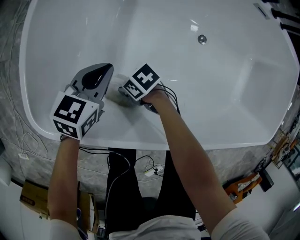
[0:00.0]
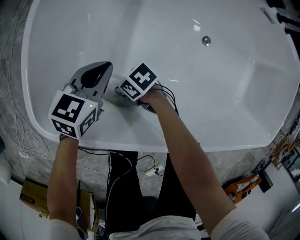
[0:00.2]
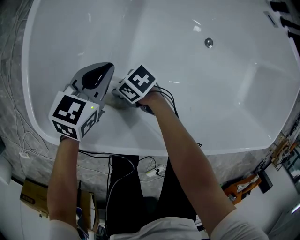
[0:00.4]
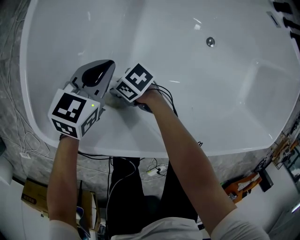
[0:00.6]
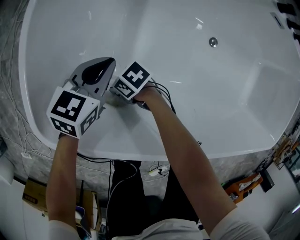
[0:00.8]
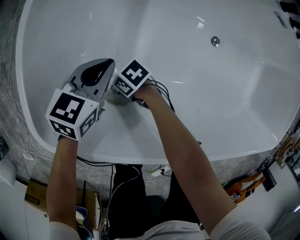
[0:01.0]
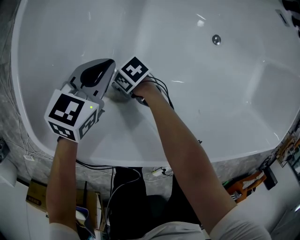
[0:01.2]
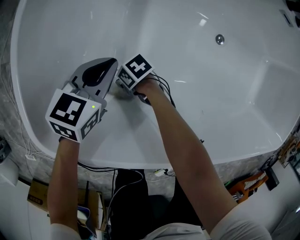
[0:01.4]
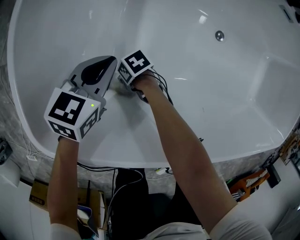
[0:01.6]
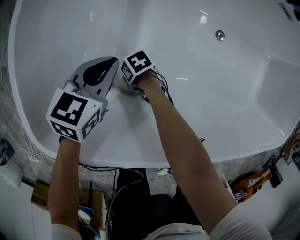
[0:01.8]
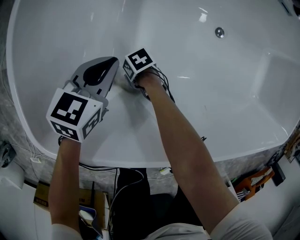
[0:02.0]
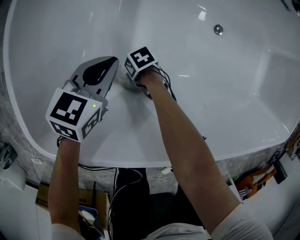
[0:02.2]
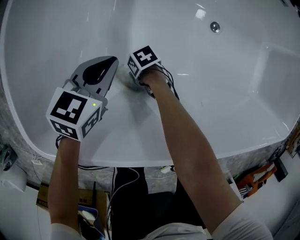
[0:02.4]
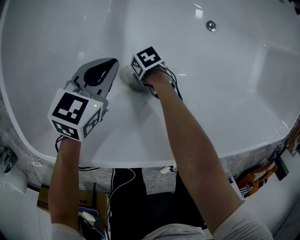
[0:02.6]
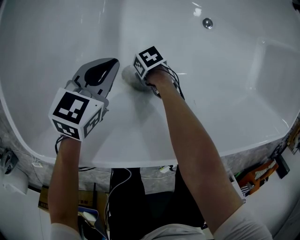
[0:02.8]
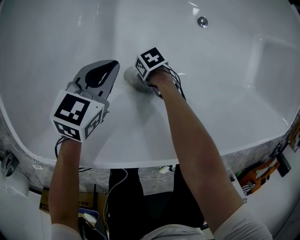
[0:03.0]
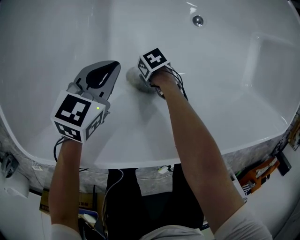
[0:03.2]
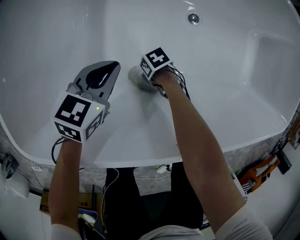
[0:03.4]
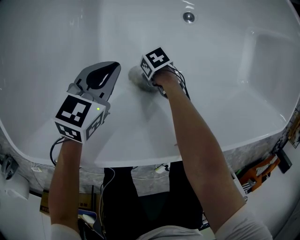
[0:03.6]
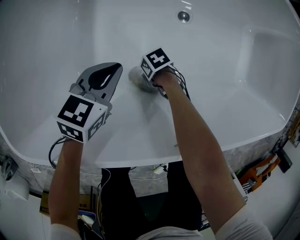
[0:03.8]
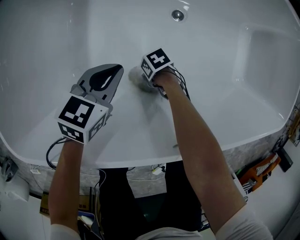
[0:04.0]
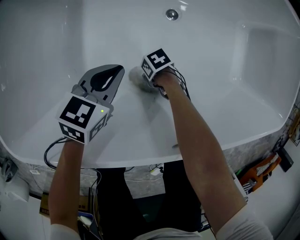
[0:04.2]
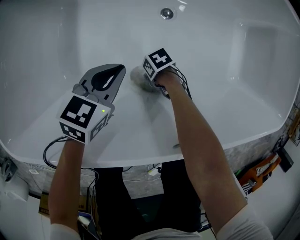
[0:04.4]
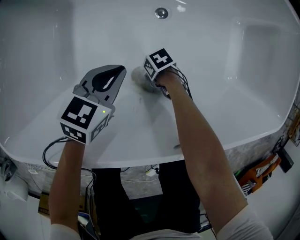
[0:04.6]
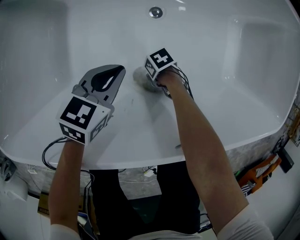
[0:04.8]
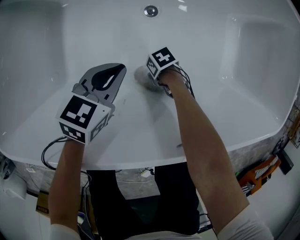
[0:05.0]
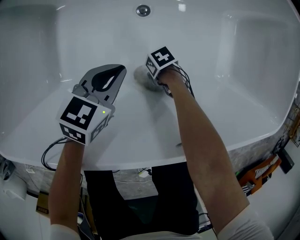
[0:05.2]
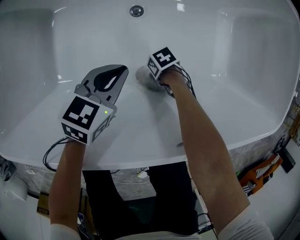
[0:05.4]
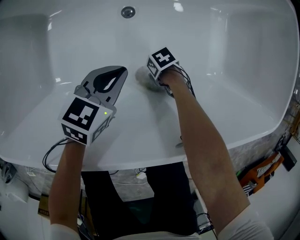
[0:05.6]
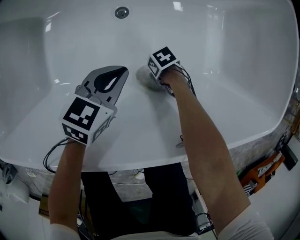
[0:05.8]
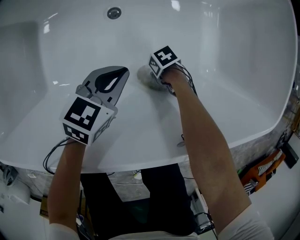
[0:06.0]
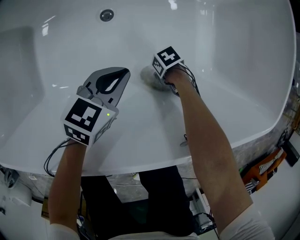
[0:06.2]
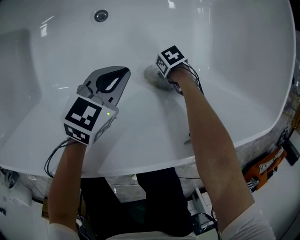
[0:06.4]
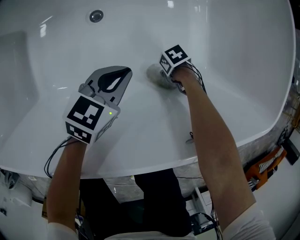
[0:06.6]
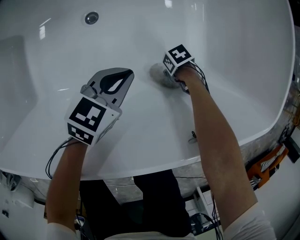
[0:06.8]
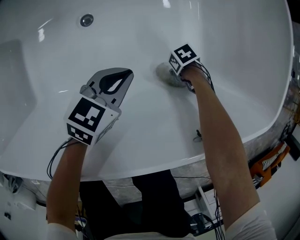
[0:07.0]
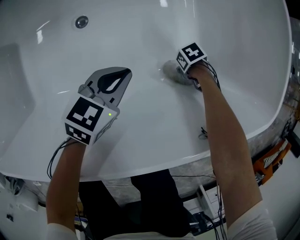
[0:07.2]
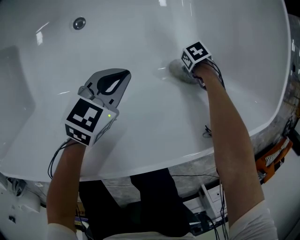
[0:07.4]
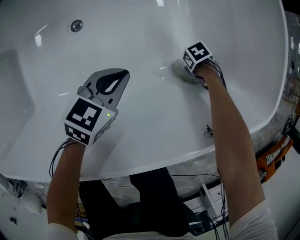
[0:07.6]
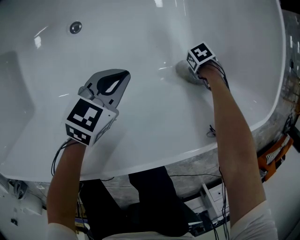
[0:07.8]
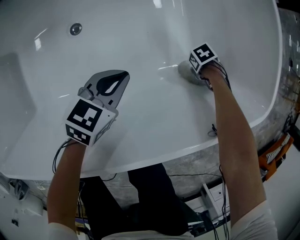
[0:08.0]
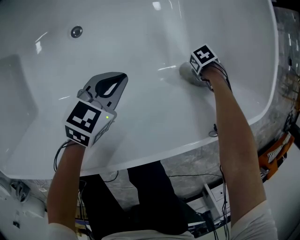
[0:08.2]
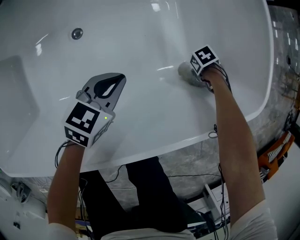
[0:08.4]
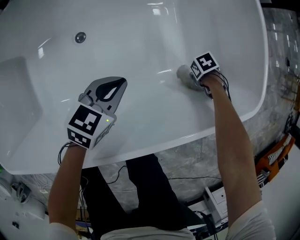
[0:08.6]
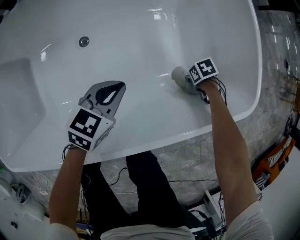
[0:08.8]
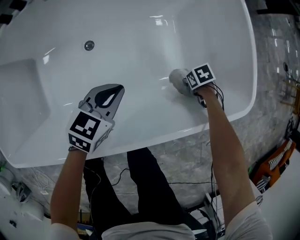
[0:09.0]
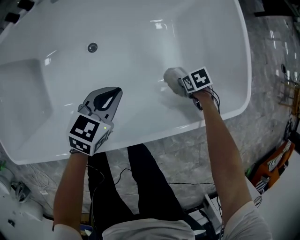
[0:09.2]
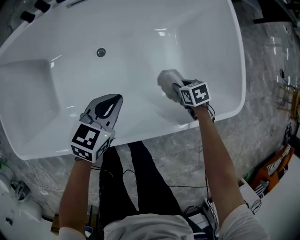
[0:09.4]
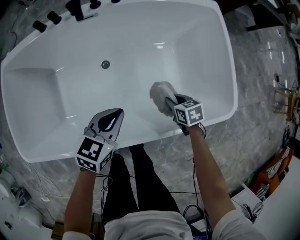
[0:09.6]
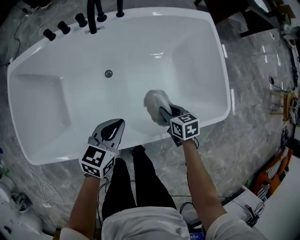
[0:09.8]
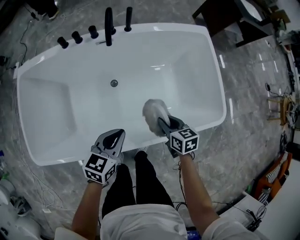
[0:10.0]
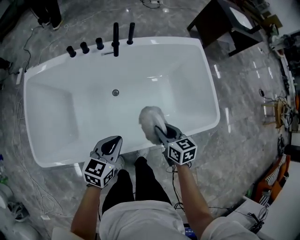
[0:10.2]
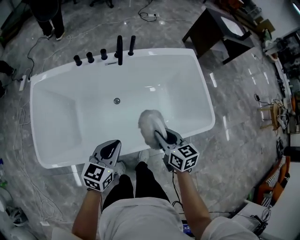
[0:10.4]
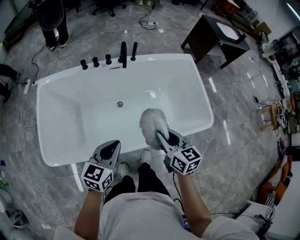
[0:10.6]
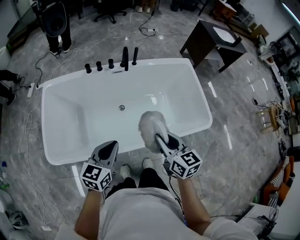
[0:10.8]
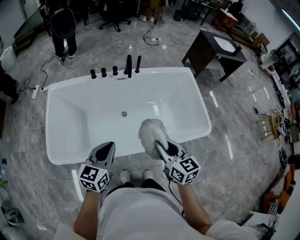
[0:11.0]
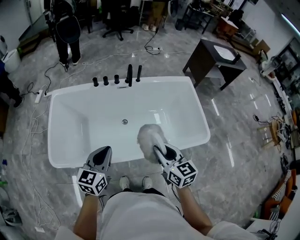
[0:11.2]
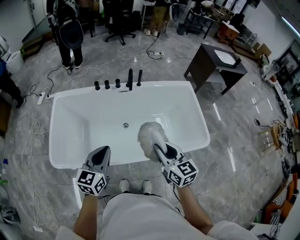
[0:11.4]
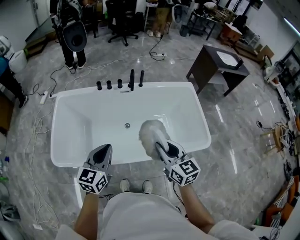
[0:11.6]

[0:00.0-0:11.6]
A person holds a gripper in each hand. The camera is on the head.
0:00.0 to 0:01.4: The left gripper goes roughly 5 cm downward.
0:01.4 to 0:02.8: The left gripper changes place by approximately 10 cm.
0:02.8 to 0:04.4: The left gripper moves about 20 cm.
0:04.4 to 0:05.8: The left gripper changes place by some 20 cm.
0:05.8 to 0:07.2: The left gripper shifts by roughly 15 cm.
0:07.2 to 0:08.8: The left gripper heads upward, covering about 10 cm.
0:08.8 to 0:10.2: The left gripper heads upward, covering roughly 30 cm.
0:10.2 to 0:11.6: The left gripper moves upward, some 20 cm, and changes its angle by roughly 30 degrees.

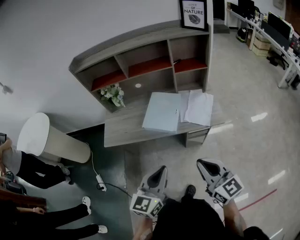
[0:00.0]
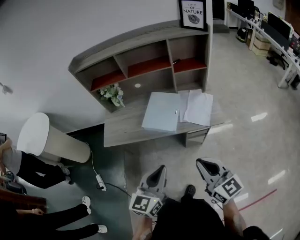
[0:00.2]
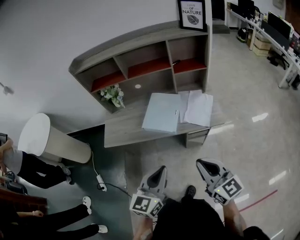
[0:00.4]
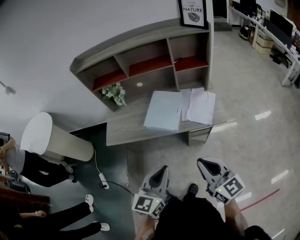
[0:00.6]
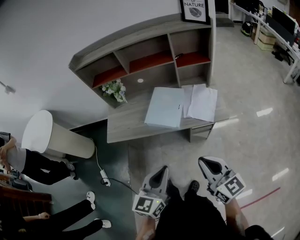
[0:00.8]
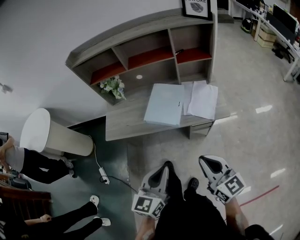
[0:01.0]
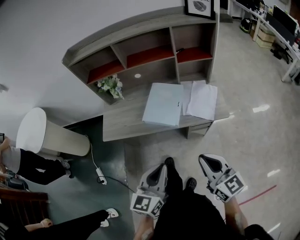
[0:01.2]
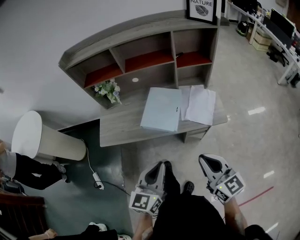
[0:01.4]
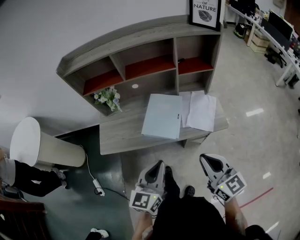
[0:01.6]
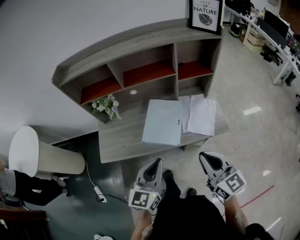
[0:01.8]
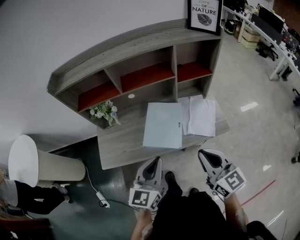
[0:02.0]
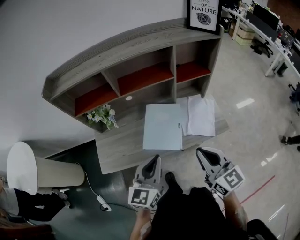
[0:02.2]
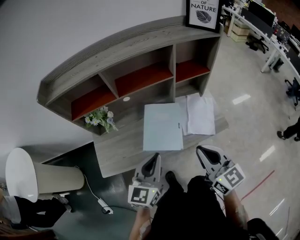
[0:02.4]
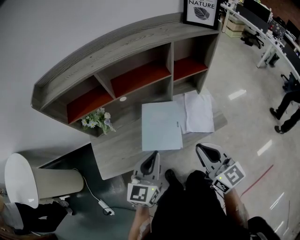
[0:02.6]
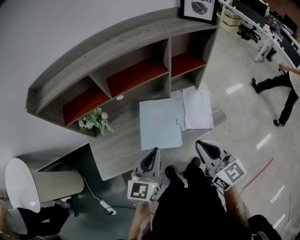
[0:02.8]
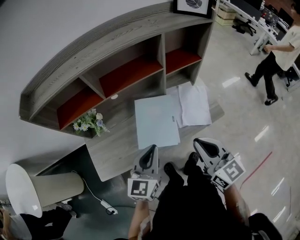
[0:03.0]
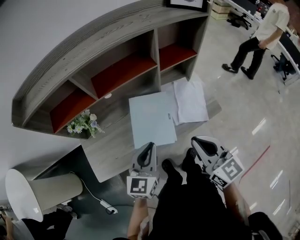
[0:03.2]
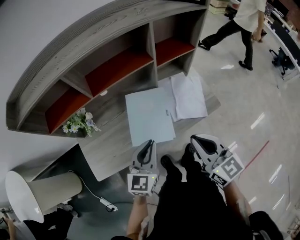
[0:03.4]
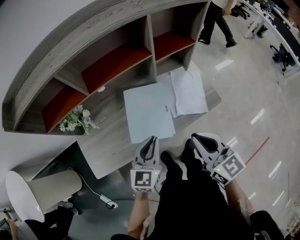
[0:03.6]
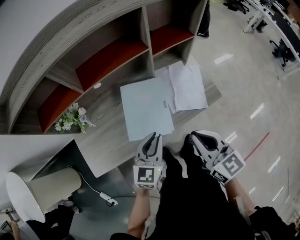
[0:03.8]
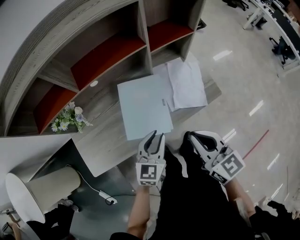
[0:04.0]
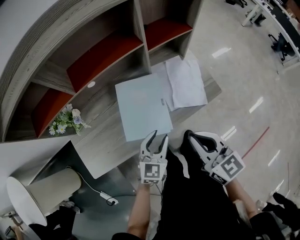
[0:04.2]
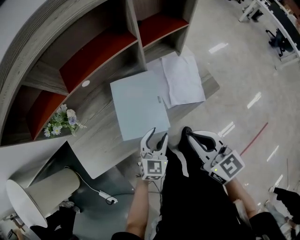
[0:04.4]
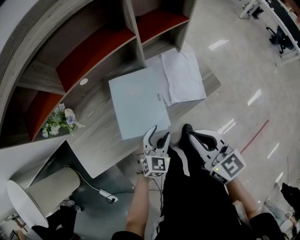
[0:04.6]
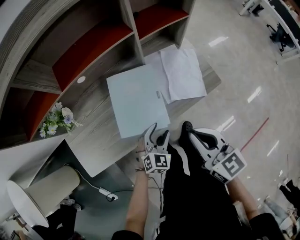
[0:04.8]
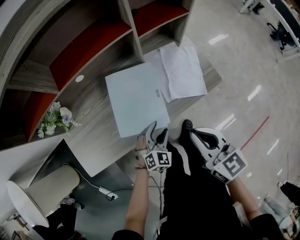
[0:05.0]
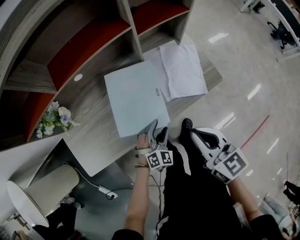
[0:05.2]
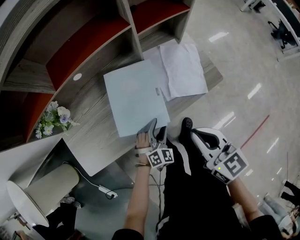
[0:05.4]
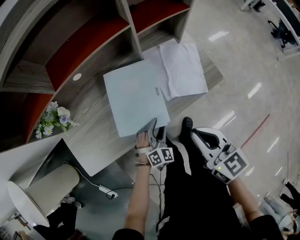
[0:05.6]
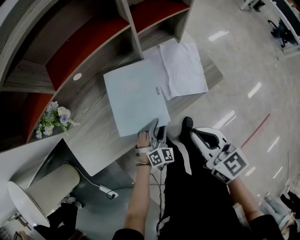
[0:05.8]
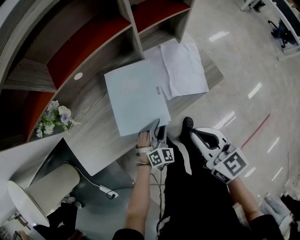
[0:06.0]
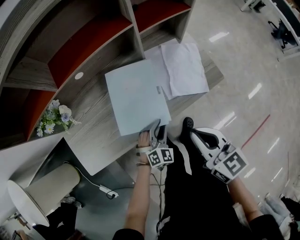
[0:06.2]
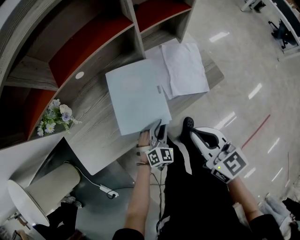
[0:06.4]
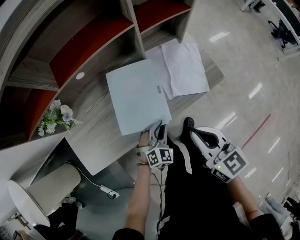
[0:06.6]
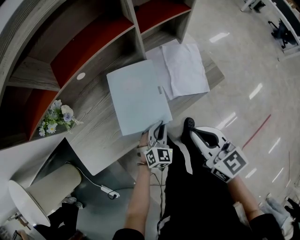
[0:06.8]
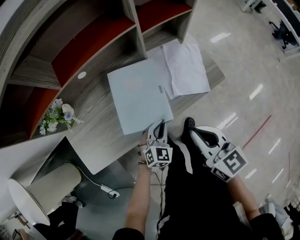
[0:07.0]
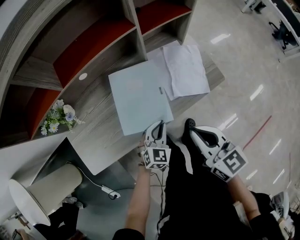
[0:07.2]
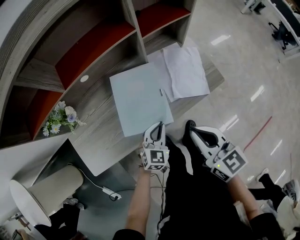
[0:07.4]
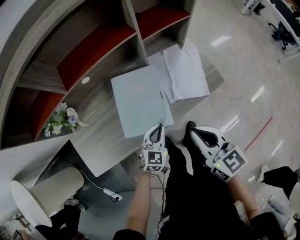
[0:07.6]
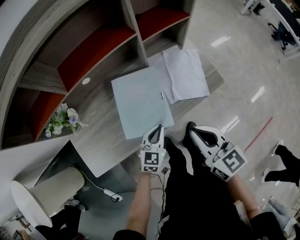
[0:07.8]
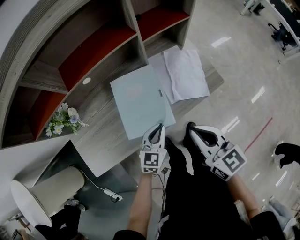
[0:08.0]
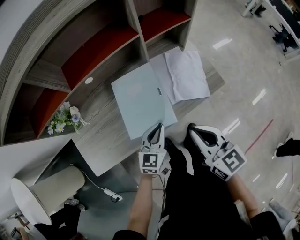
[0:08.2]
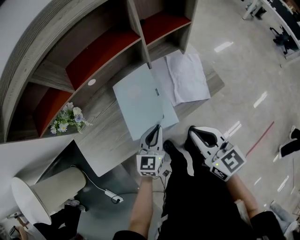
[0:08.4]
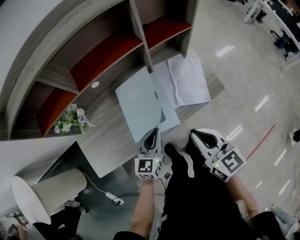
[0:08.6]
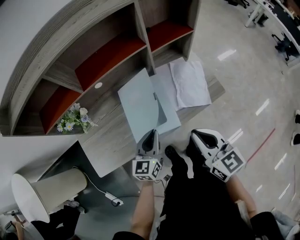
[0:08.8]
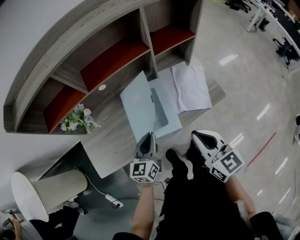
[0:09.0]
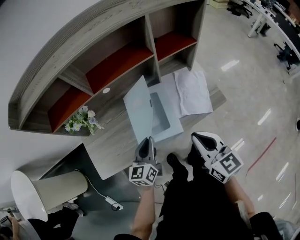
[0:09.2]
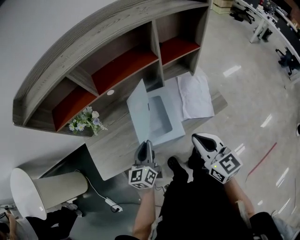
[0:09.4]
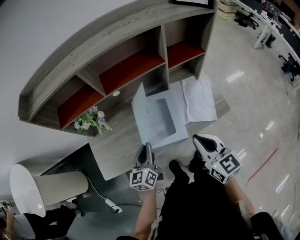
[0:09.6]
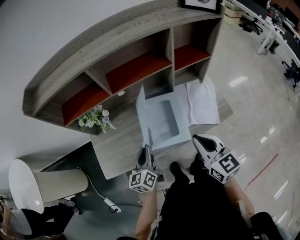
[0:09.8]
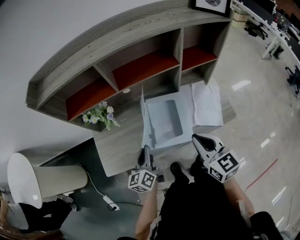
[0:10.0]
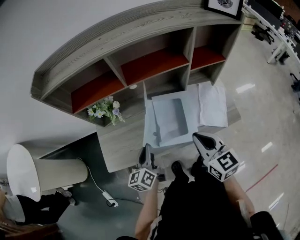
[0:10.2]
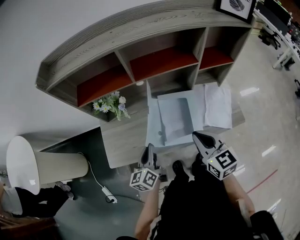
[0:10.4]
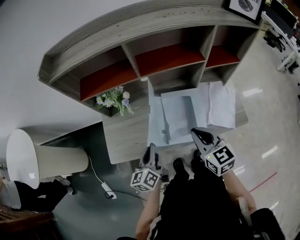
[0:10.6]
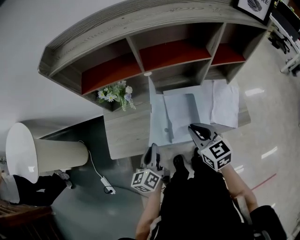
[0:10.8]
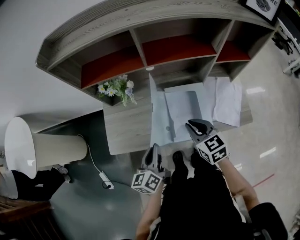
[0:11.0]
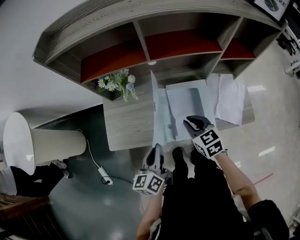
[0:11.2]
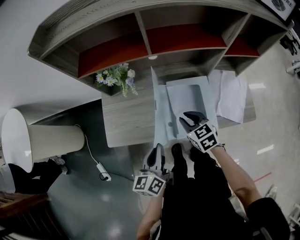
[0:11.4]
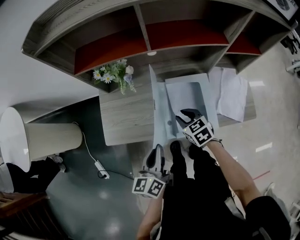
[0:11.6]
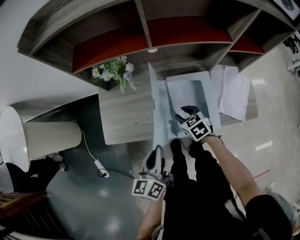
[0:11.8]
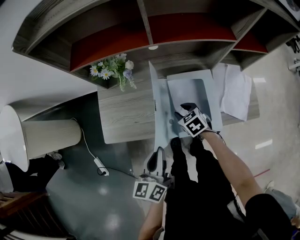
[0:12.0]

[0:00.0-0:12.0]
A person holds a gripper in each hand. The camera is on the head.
0:00.0 to 0:01.6: Both grippers move forward, roughly 10 cm.
0:01.6 to 0:03.0: The right gripper shifts approximately 15 cm forward and to the left. The left gripper is displaced forward by approximately 20 cm.
0:03.0 to 0:04.4: The left gripper moves downward and to the right, some 20 cm, changes its angle by about 30 degrees, and opens, while the right gripper travels downward by some 10 cm.
0:04.4 to 0:06.0: The left gripper shifts about 10 cm downward, and changes its angle by approximately 30 degrees.
0:06.0 to 0:07.6: The left gripper heads upward, covering about 5 cm, changes its angle by approximately 30 degrees, and closes.
0:07.6 to 0:09.0: The left gripper goes about 15 cm upward and to the left, and rotates approximately 40 degrees.
0:09.0 to 0:10.4: The right gripper heads to the left and forward, covering about 10 cm. Meanwhile the left gripper heads to the left, covering some 15 cm, and turns by approximately 30 degrees.
0:10.4 to 0:12.0: The right gripper goes about 25 cm downward, points its fingers about 40 degrees further downward, and opens, while the left gripper travels backward by approximately 5 cm.
